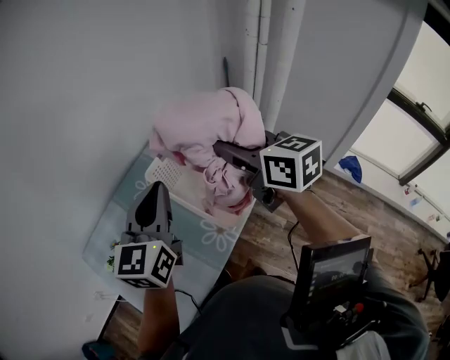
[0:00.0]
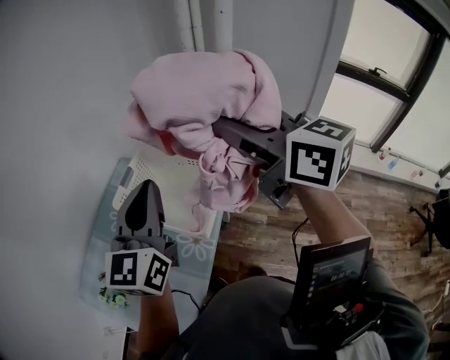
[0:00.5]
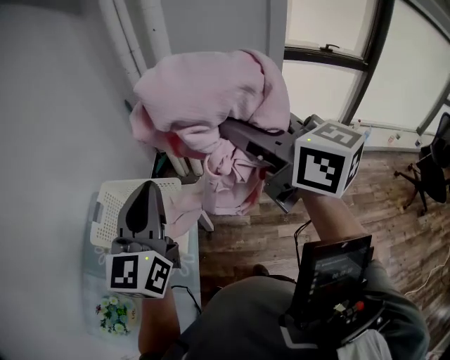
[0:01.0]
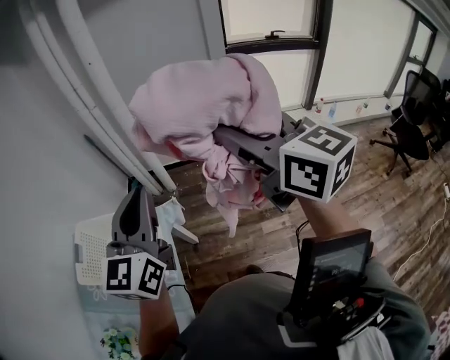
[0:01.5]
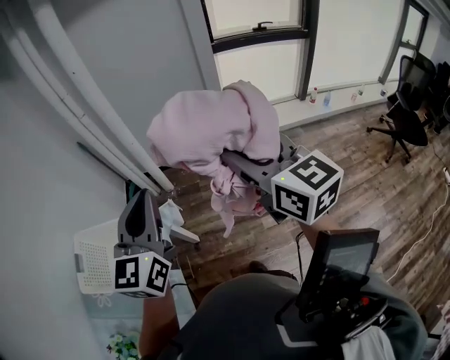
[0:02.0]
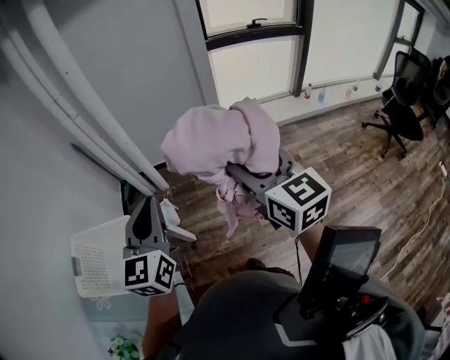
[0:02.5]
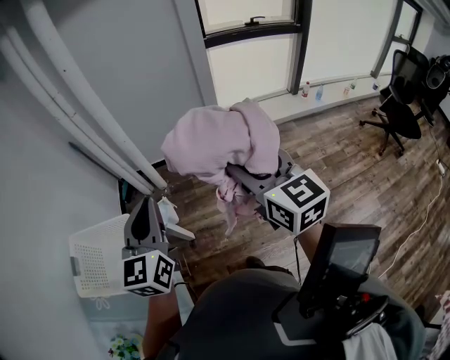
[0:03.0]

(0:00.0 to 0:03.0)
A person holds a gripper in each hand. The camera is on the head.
0:00.0 - 0:01.5: The left gripper moves approximately 35 cm, and swivels roughly 40 degrees. The right gripper ends up approximately 50 cm from where it was, and changes its angle by roughly 50 degrees.
0:01.5 - 0:03.0: The left gripper is displaced downward by roughly 10 cm. The right gripper moves downward, some 15 cm.

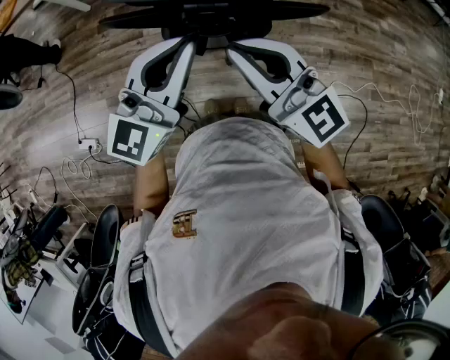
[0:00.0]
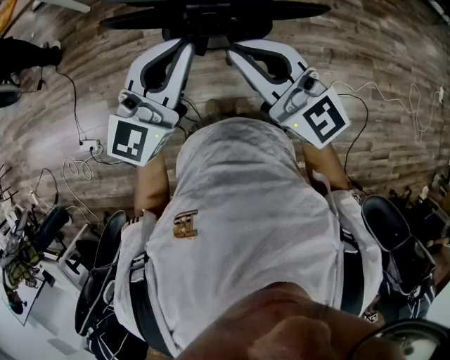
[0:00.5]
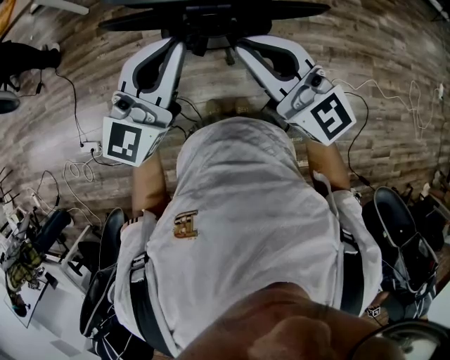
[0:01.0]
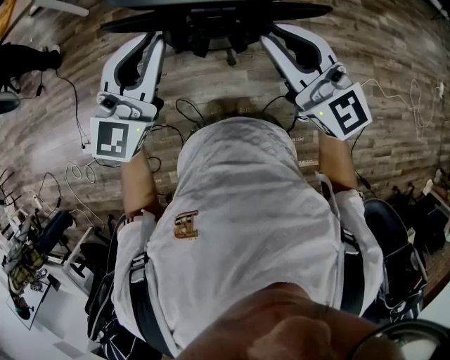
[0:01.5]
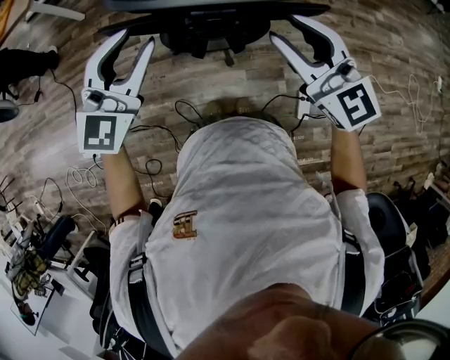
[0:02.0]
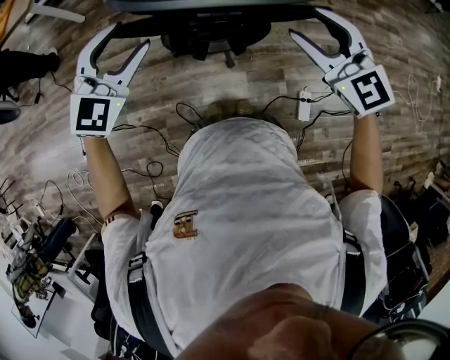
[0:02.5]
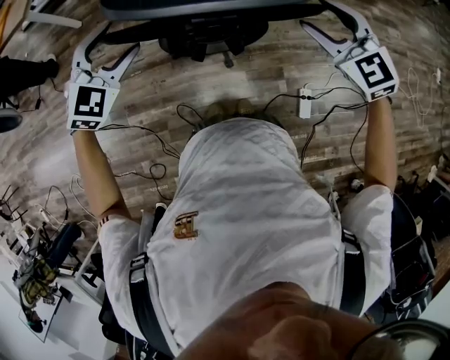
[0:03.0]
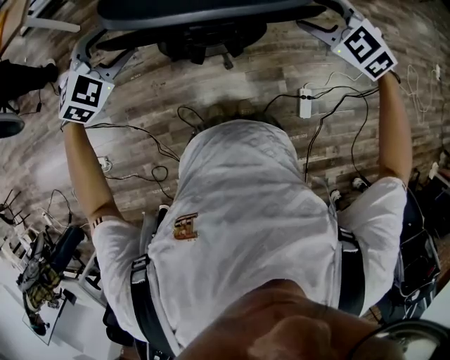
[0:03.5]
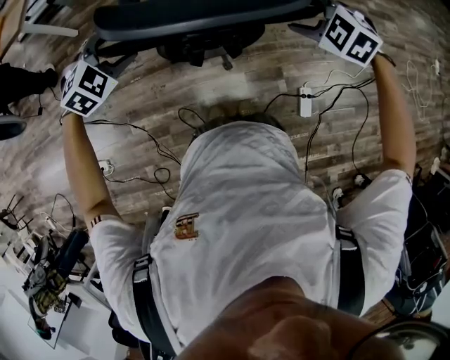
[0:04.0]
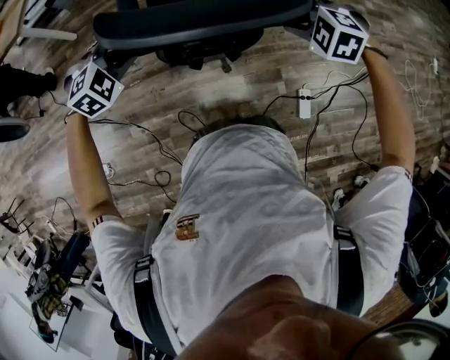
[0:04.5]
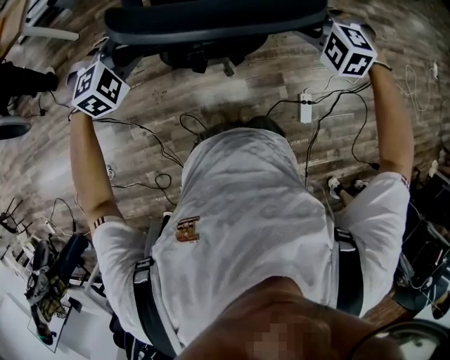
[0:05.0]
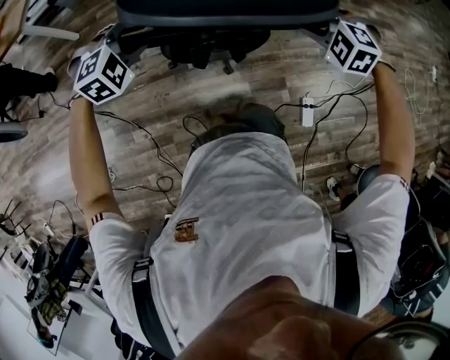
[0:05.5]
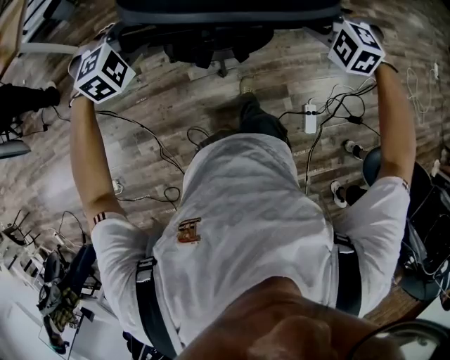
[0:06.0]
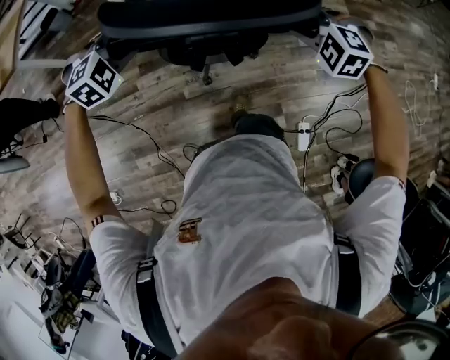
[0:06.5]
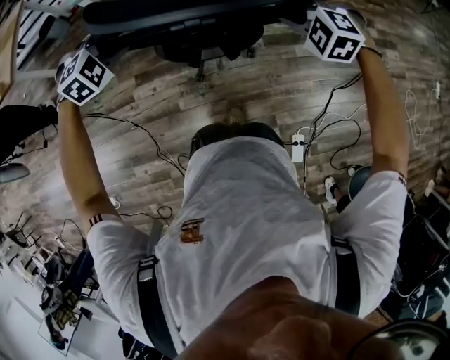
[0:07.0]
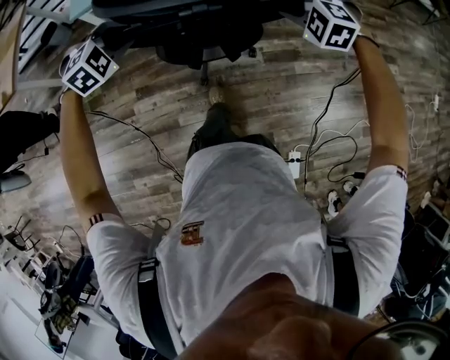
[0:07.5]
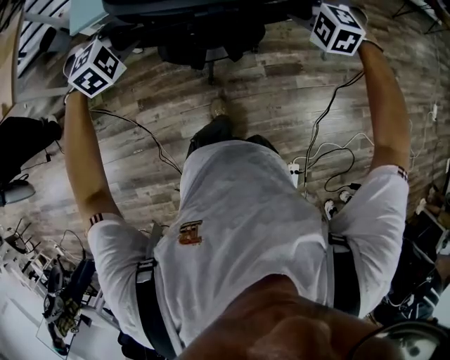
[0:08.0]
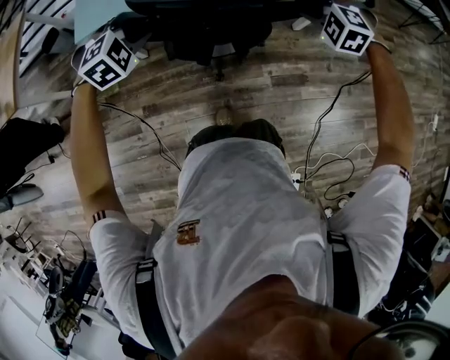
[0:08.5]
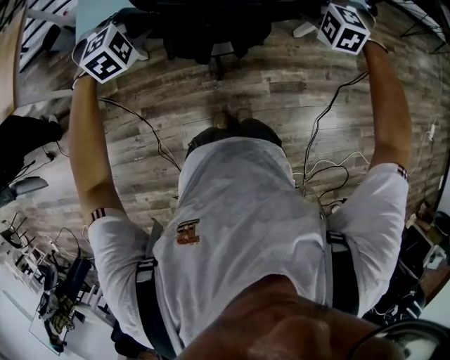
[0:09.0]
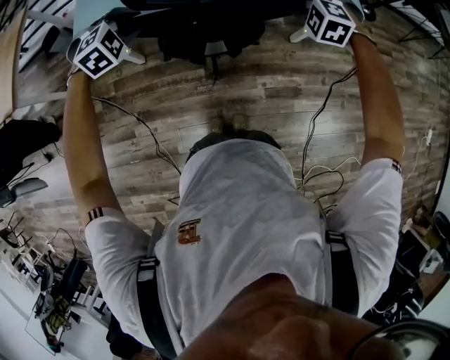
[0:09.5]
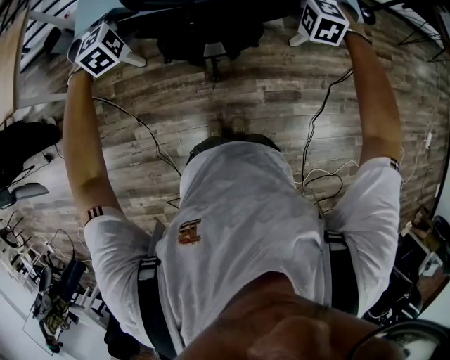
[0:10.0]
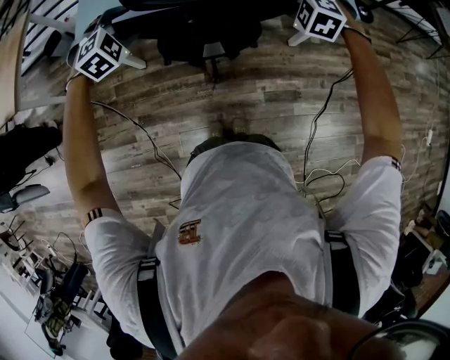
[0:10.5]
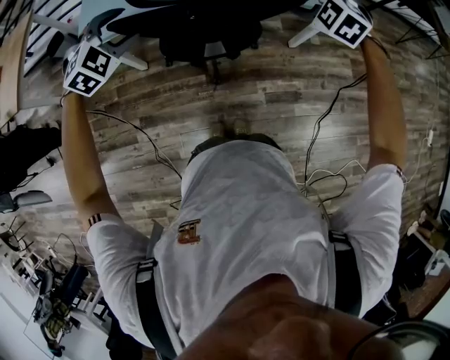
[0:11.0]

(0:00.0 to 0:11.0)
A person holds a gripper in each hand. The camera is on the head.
0:00.0 - 0:02.0: The right gripper shifts roughly 5 cm to the right, and opens up. The left gripper heads to the left and forward, covering roughly 10 cm, changes its angle by some 20 degrees, and opens up.
0:02.0 - 0:03.5: The right gripper moves to the right, downward and forward, approximately 15 cm, tips its fingers downward by roughly 40 degrees, and opens up; the left gripper goes roughly 15 cm downward, forward and to the left, angles its fingers downward, by about 40 degrees, and opens up.
0:03.5 - 0:05.5: The two grippers go roughly 10 cm forward and downward. The right gripper turns by roughly 20 degrees, and closes. Meanwhile the left gripper closes its fingers.
0:05.5 - 0:07.5: The two grippers travel together, forward, approximately 50 cm.
0:07.5 - 0:09.0: The grippers both shift forward by about 25 cm.
0:09.0 - 0:11.0: The grippers both shift upward by approximately 5 cm. The right gripper opens; the left gripper opens its fingers.

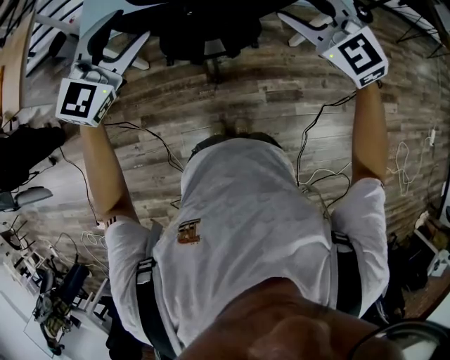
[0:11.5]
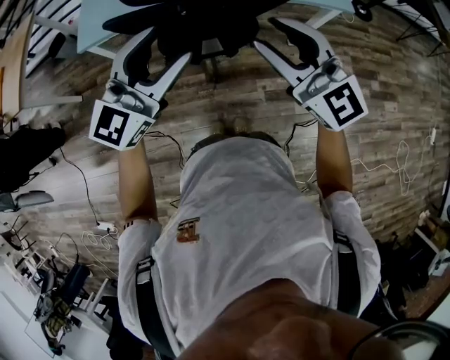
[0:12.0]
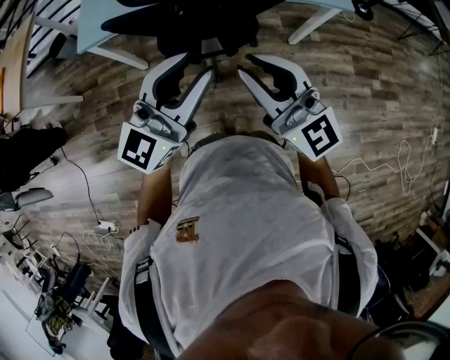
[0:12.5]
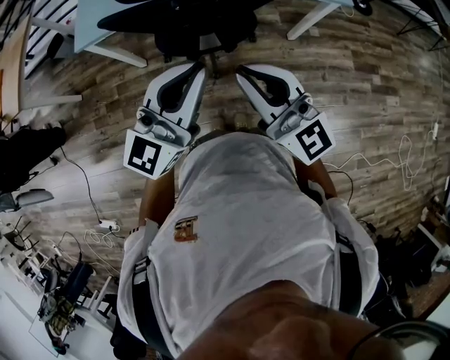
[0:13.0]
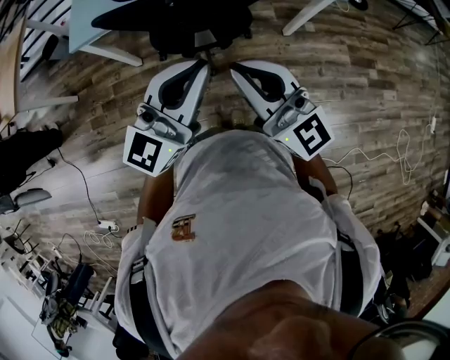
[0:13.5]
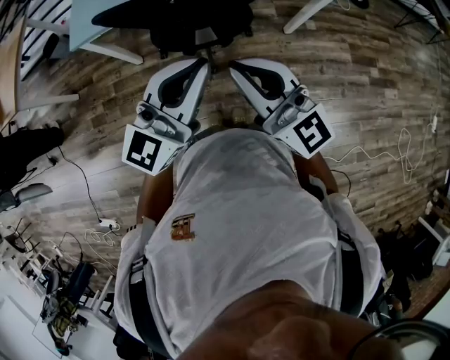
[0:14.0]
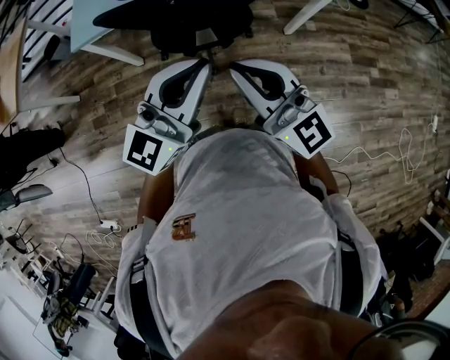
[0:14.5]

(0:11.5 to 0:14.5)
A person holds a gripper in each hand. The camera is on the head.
0:11.5 - 0:13.0: The left gripper moves backward and to the right, approximately 20 cm, swivels some 30 degrees, and closes. The right gripper heads backward, covering some 15 cm, points its fingers about 30 degrees further upward, and closes.
0:13.0 - 0:14.5: The grippers make only small movements.

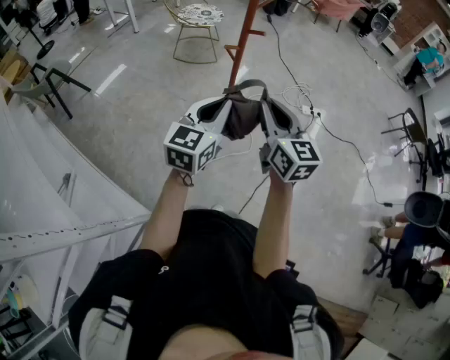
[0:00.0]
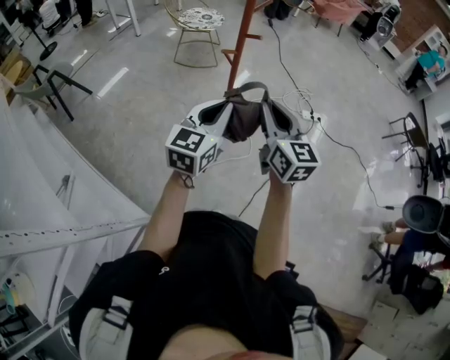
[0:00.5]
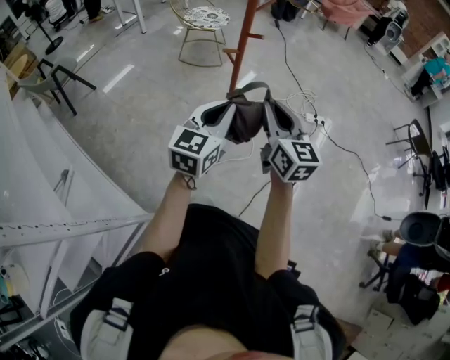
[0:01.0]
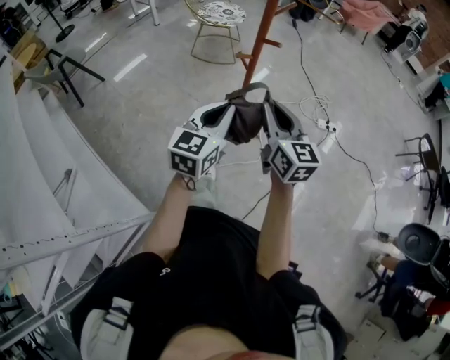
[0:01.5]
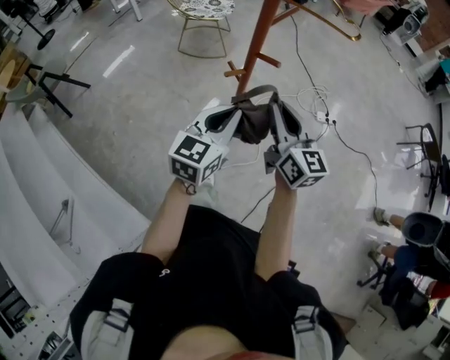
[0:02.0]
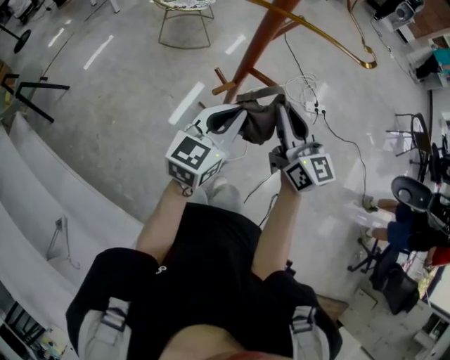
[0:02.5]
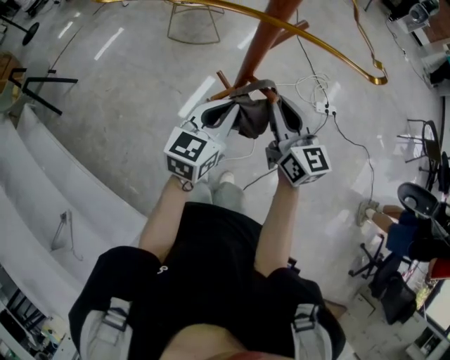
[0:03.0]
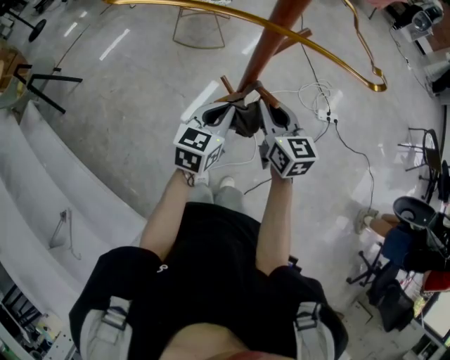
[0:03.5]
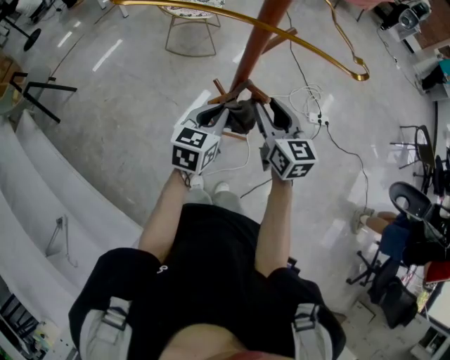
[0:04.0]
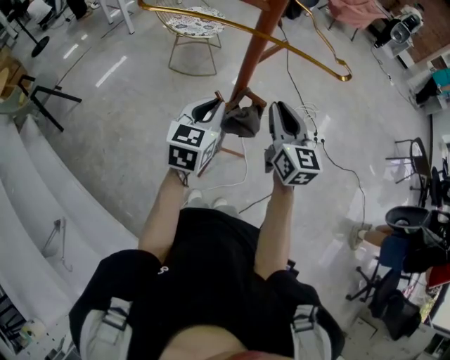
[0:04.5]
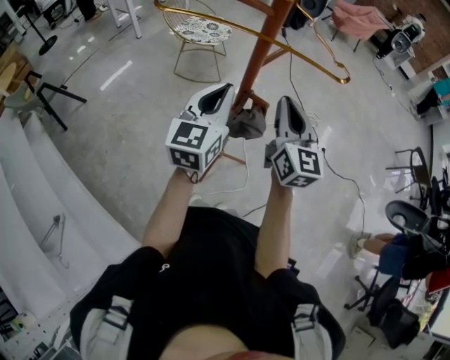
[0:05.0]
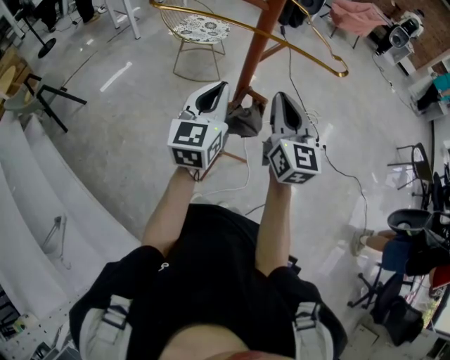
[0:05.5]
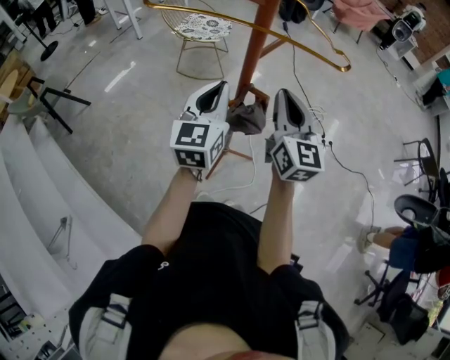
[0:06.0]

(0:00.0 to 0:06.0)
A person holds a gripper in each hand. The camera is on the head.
0:00.0 - 0:02.0: The two grippers go roughly 20 cm forward.
0:02.0 - 0:04.0: The left gripper travels forward and downward by some 15 cm. The right gripper heads forward, covering approximately 15 cm, and opens its fingers.
0:04.0 - 0:06.0: Both grippers travel together upward, about 15 cm. The right gripper swivels about 20 degrees, and closes up. Meanwhile the left gripper changes its angle by roughly 30 degrees.

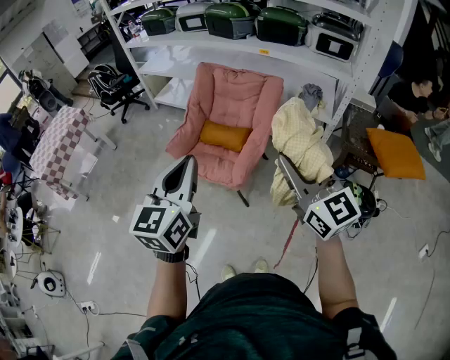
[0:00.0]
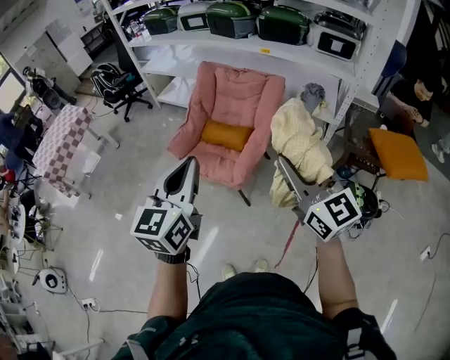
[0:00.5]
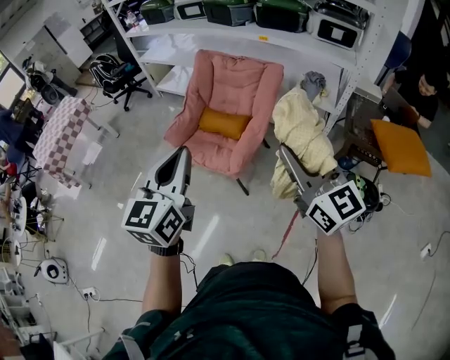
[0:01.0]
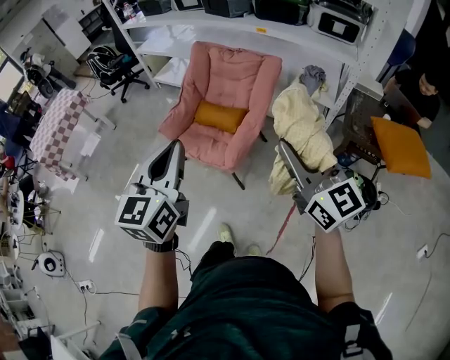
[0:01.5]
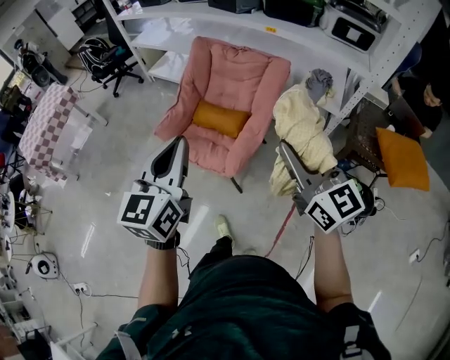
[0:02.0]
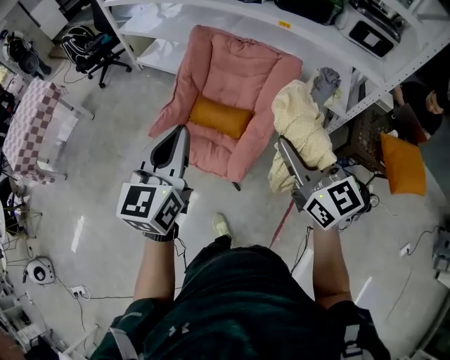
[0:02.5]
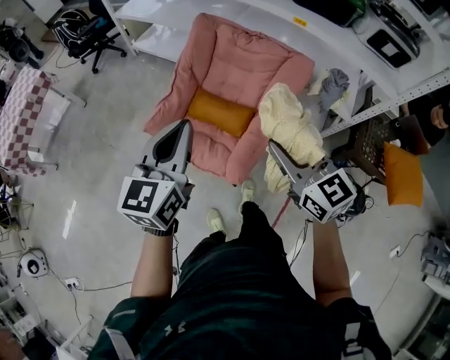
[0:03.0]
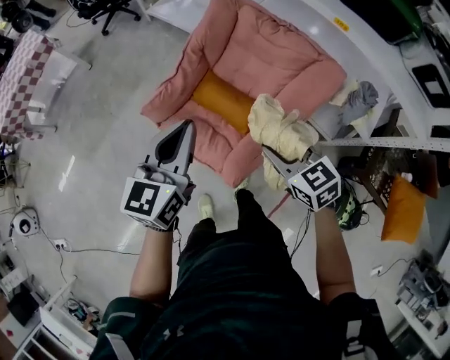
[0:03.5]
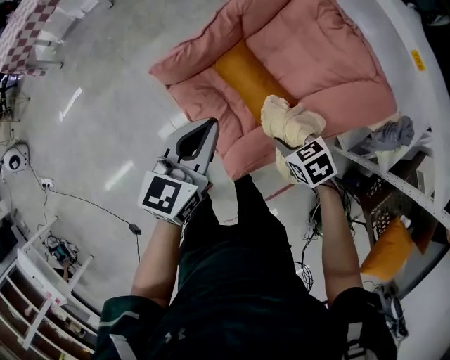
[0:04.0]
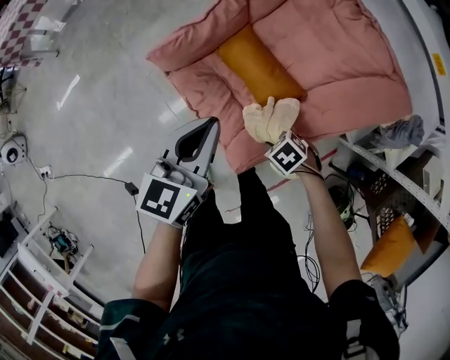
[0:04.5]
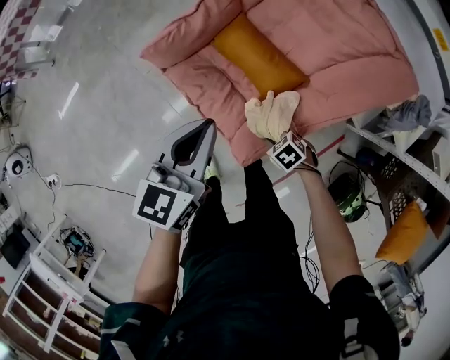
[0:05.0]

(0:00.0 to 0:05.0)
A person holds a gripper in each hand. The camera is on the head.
0:00.0 - 0:02.5: Both grippers travel together forward, some 25 cm.
0:02.5 - 0:05.0: The right gripper goes about 60 cm downward, and tilts its fingers roughly 70 degrees downward. The left gripper is displaced downward by approximately 30 cm, and turns by some 30 degrees.
